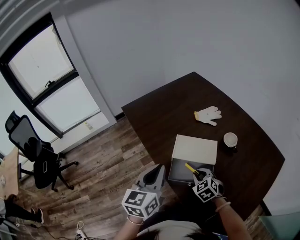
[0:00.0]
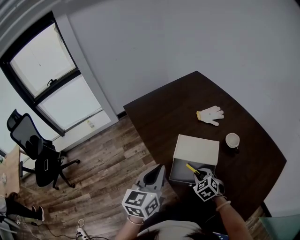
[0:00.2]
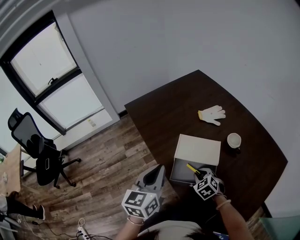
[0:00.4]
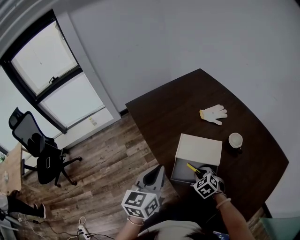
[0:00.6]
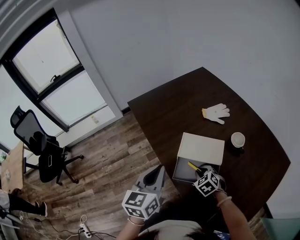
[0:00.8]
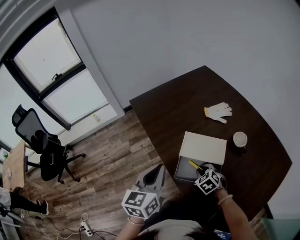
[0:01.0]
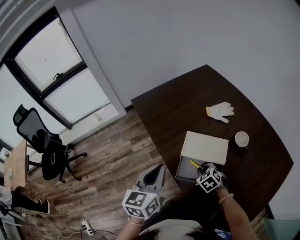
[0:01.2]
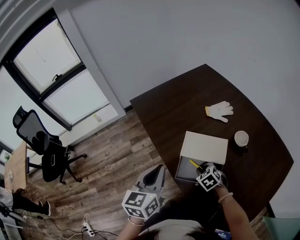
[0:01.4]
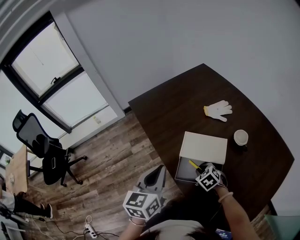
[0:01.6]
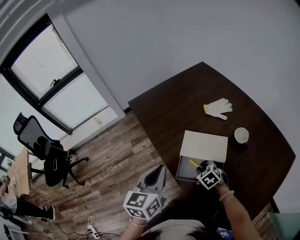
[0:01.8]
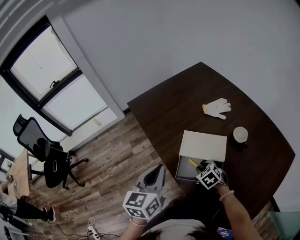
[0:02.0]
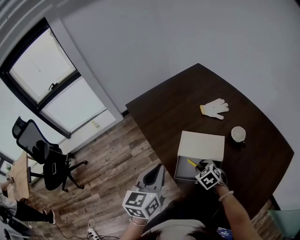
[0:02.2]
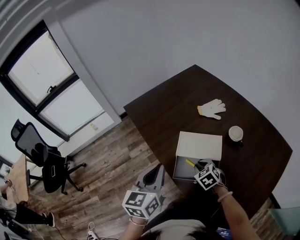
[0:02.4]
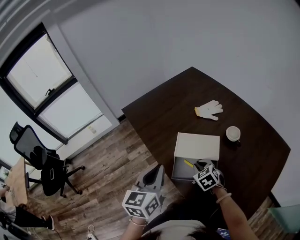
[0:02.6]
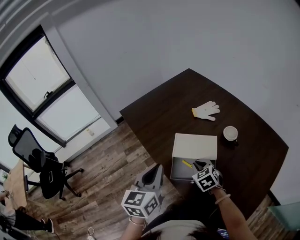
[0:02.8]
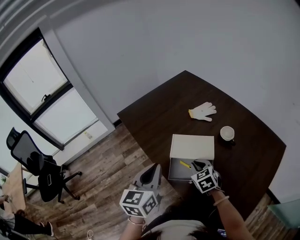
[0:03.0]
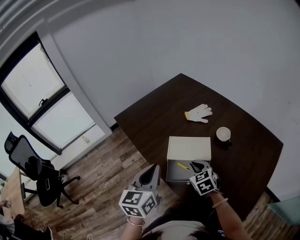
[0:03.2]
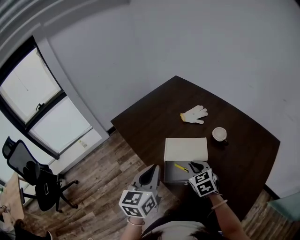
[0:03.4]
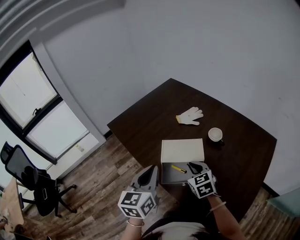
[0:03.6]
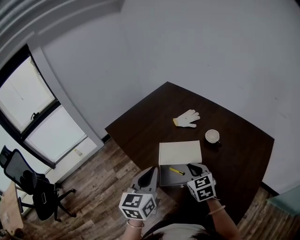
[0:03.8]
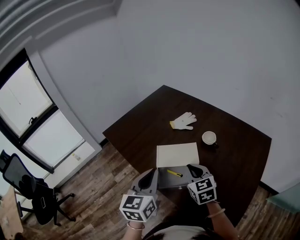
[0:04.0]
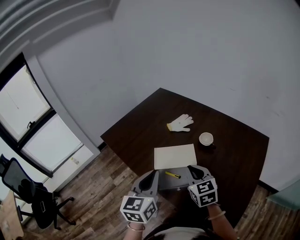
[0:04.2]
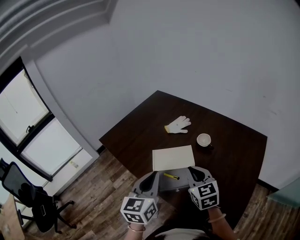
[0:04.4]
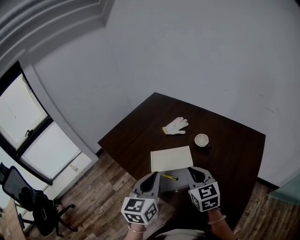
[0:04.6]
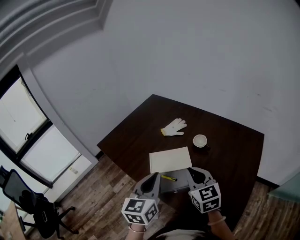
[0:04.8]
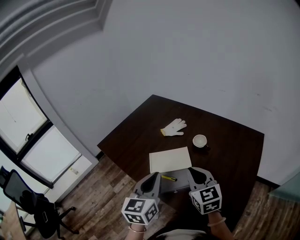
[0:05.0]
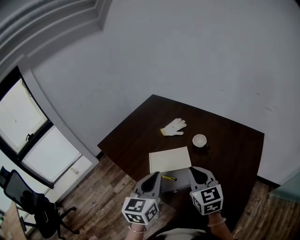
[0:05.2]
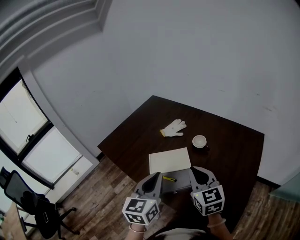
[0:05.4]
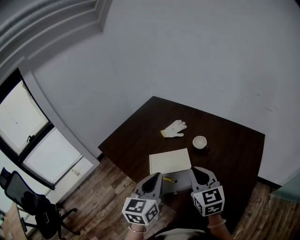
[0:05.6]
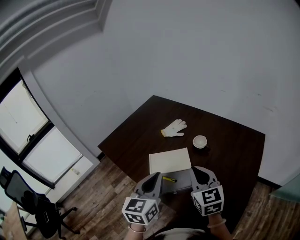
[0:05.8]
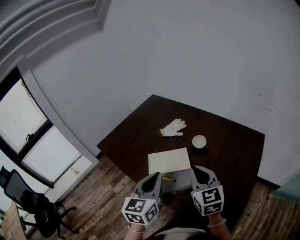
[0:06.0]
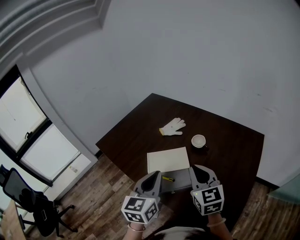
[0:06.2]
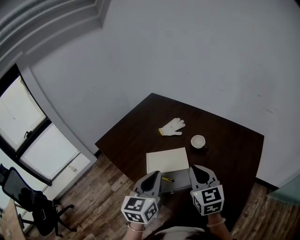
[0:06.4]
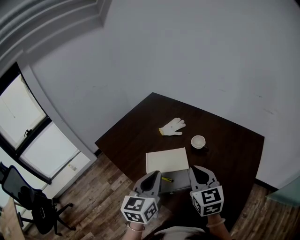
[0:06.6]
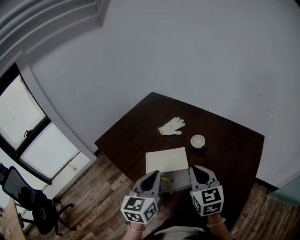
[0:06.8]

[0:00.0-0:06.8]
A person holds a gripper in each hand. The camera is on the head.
0:00.0 to 0:01.4: The right gripper is displaced downward by approximately 5 cm.
0:01.4 to 0:02.8: The right gripper heads upward, covering approximately 10 cm.
0:02.8 to 0:04.0: The left gripper changes place by some 5 cm. The right gripper shifts about 15 cm upward, and turns by about 30 degrees.
0:04.0 to 0:05.4: The left gripper shifts approximately 5 cm to the right. Meanwhile the right gripper is displaced upward and to the right by roughly 10 cm.
0:05.4 to 0:06.8: The grippers make only small movements.

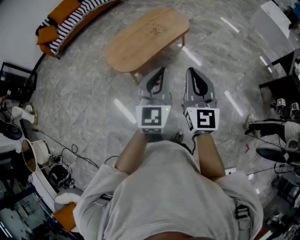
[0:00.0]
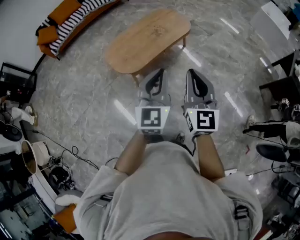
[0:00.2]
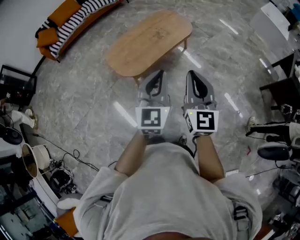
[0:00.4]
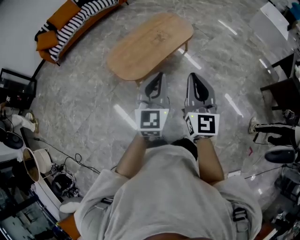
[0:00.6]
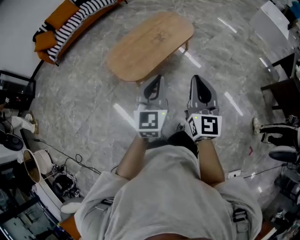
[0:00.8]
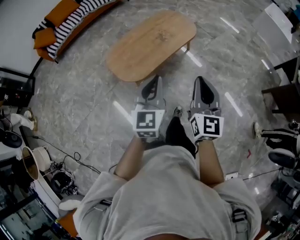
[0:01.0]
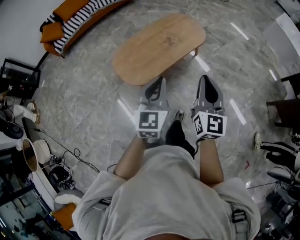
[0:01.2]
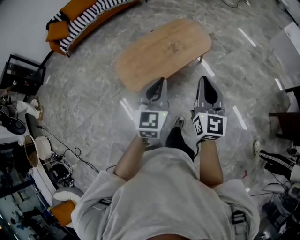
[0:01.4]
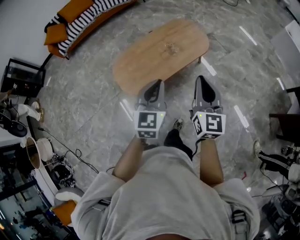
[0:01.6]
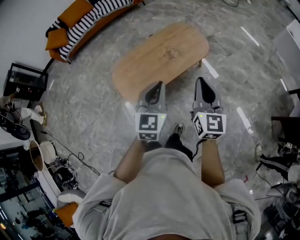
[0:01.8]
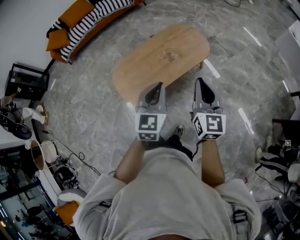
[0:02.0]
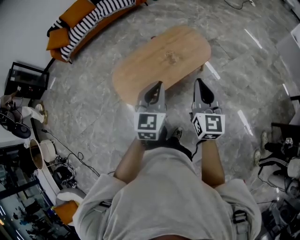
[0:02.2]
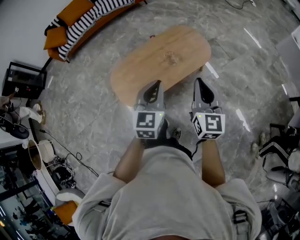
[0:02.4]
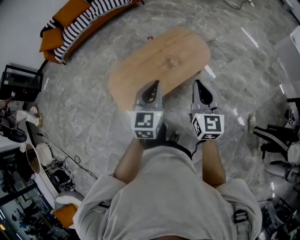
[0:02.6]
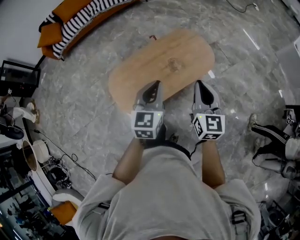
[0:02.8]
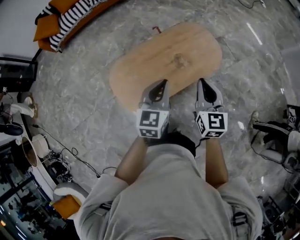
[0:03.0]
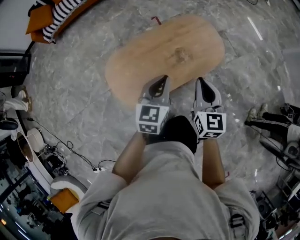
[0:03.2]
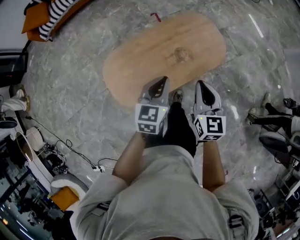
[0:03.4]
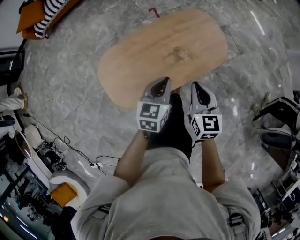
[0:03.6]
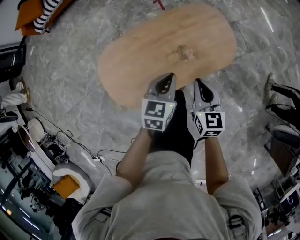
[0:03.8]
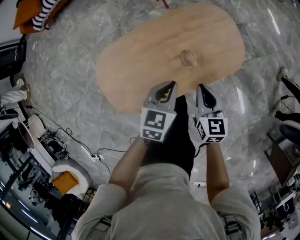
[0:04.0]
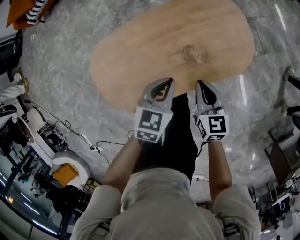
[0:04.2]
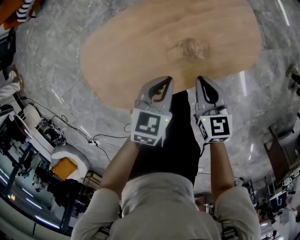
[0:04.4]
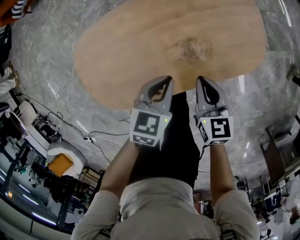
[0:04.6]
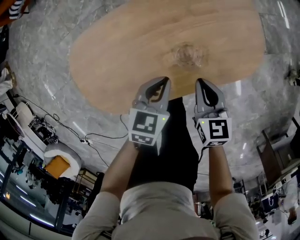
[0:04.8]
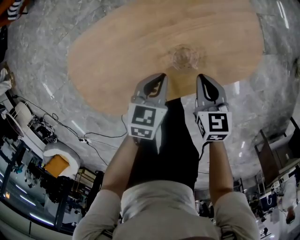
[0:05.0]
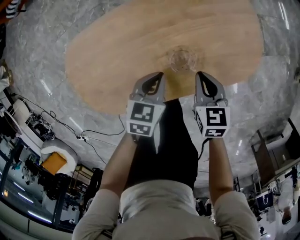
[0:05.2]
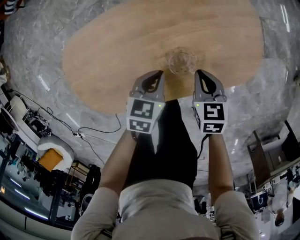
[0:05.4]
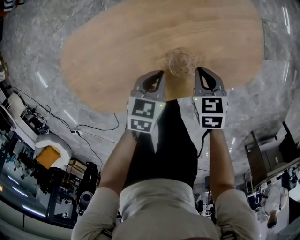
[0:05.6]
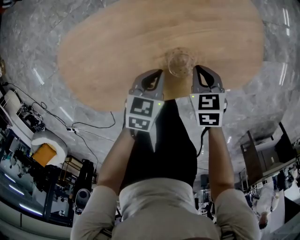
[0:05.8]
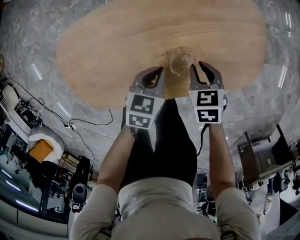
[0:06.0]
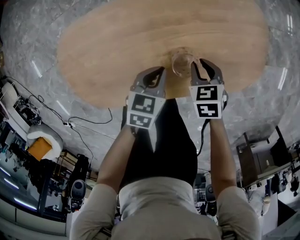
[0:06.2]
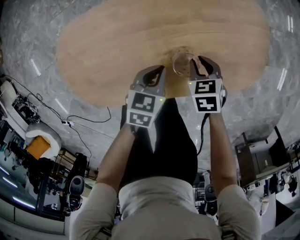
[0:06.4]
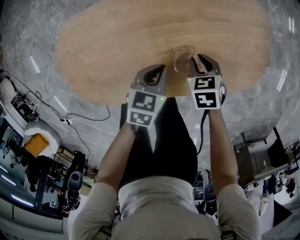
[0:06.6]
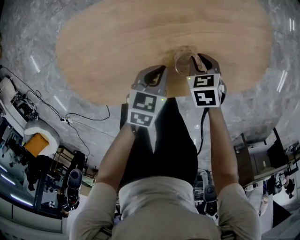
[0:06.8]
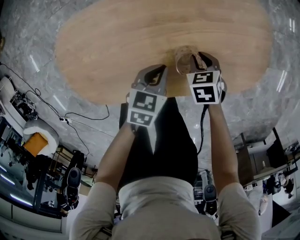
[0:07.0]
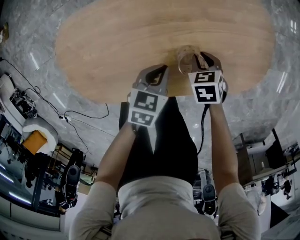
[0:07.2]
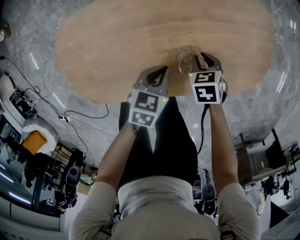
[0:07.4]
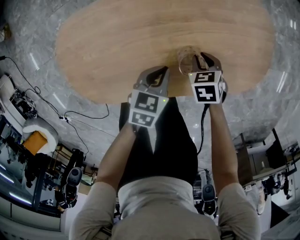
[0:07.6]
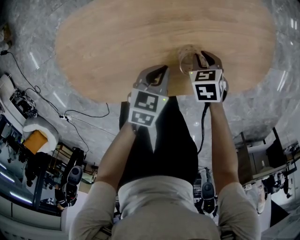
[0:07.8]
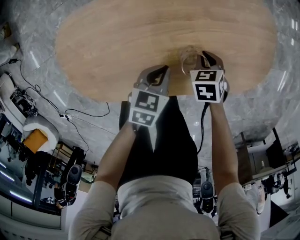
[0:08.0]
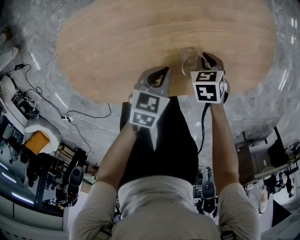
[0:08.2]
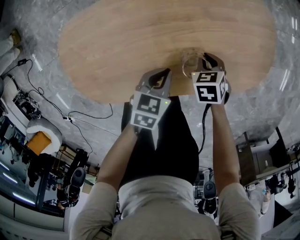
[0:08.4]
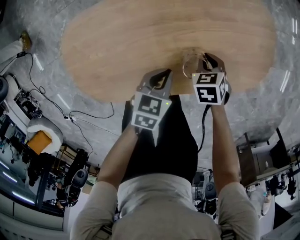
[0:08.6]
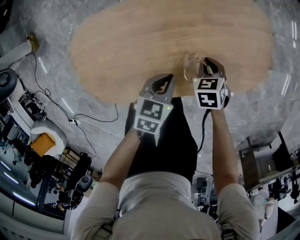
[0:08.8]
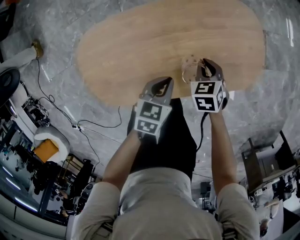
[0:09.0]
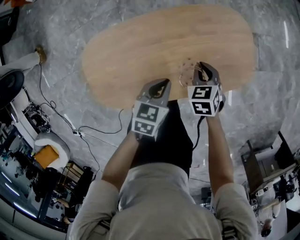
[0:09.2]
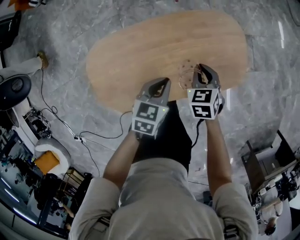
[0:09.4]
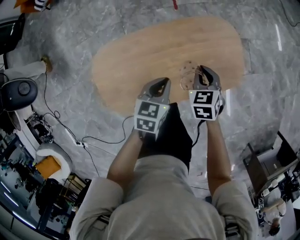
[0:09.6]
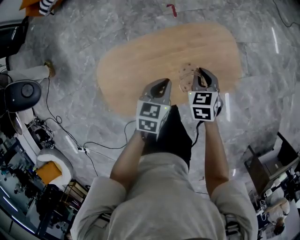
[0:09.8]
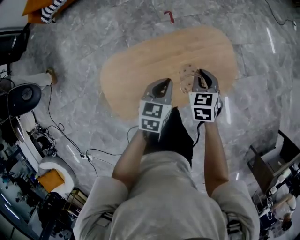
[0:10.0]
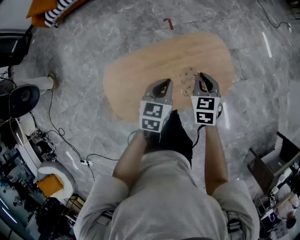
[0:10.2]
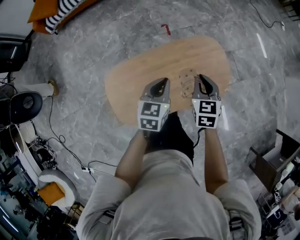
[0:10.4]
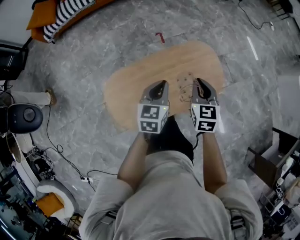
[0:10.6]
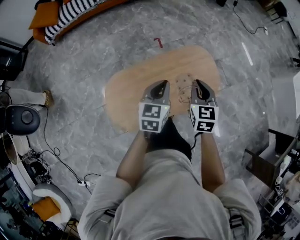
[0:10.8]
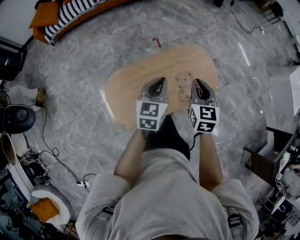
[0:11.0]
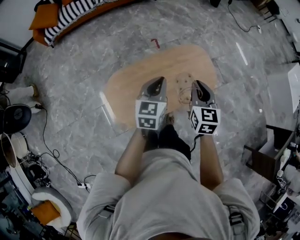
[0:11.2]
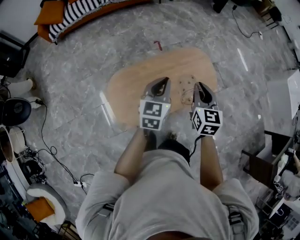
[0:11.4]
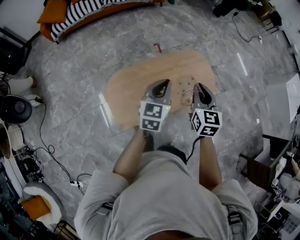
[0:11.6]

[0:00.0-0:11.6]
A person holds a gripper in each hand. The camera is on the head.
0:00.0 to 0:01.4: The right gripper moves forward, roughly 25 cm, while the left gripper moves forward and to the left, about 20 cm.
0:01.4 to 0:02.8: Both grippers move forward, about 25 cm.
0:02.8 to 0:04.4: The two grippers go roughly 40 cm downward and forward. The left gripper rotates about 30 degrees, while the right gripper changes its angle by about 30 degrees.
0:04.4 to 0:05.8: The right gripper moves downward and forward, some 15 cm, and swivels approximately 30 degrees; the left gripper travels downward by approximately 15 cm.
0:05.8 to 0:07.2: The right gripper shifts roughly 5 cm downward.
0:07.2 to 0:08.8: The left gripper shifts roughly 5 cm upward.
0:08.8 to 0:10.2: Both grippers move upward, about 30 cm. The right gripper changes its angle by about 30 degrees. Meanwhile the left gripper changes its angle by approximately 20 degrees.
0:10.2 to 0:11.6: Both grippers move upward and backward, approximately 20 cm. The right gripper rotates some 20 degrees.

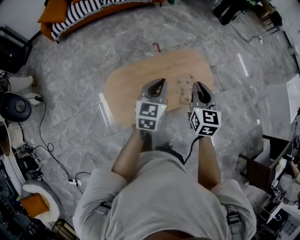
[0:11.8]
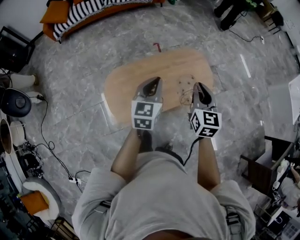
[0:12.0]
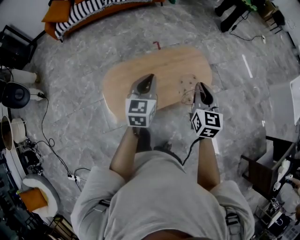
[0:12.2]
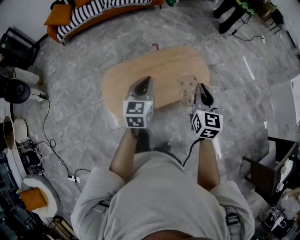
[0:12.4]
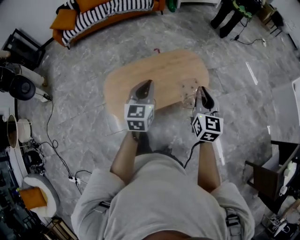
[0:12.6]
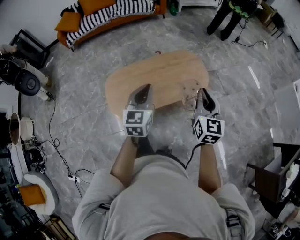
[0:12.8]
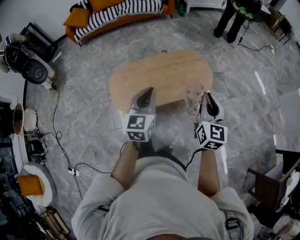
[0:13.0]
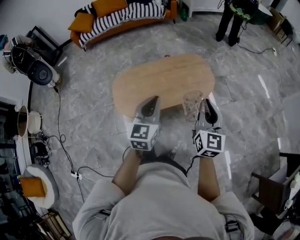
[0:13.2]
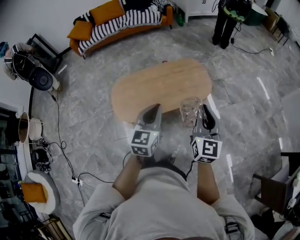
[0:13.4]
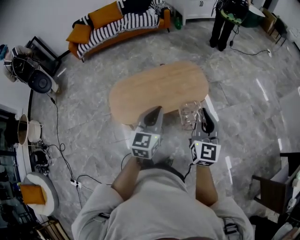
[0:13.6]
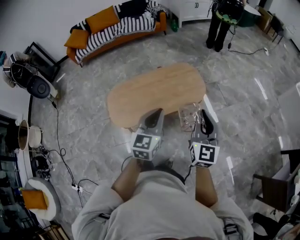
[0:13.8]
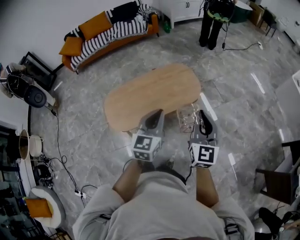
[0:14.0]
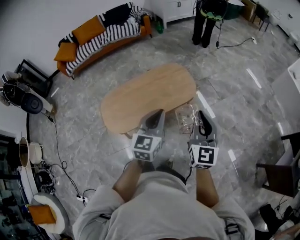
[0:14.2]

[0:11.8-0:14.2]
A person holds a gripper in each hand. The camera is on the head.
0:11.8 to 0:13.0: The left gripper travels backward and to the right by roughly 20 cm, while the right gripper is displaced to the right and backward by some 25 cm.
0:13.0 to 0:14.2: The left gripper travels to the right by some 15 cm, while the right gripper heads to the right and backward, covering some 10 cm.

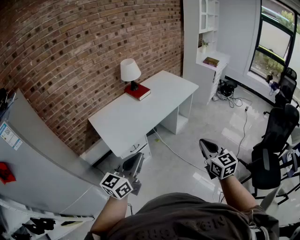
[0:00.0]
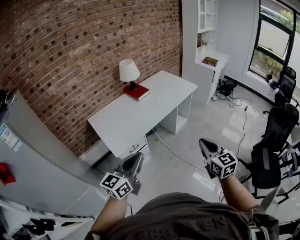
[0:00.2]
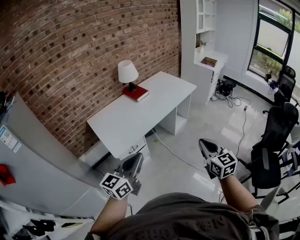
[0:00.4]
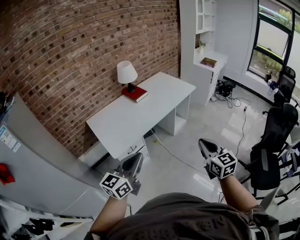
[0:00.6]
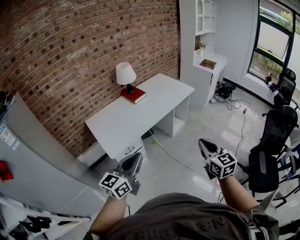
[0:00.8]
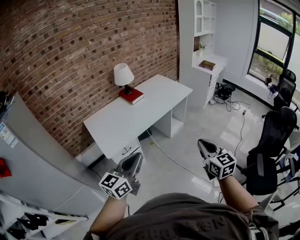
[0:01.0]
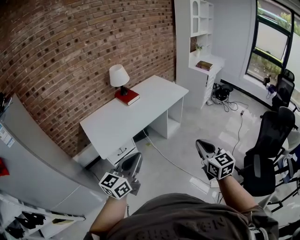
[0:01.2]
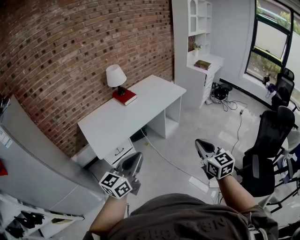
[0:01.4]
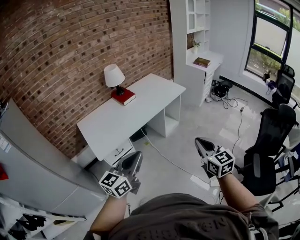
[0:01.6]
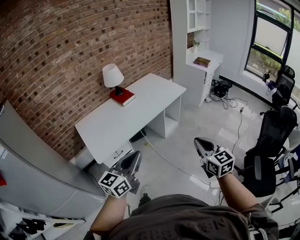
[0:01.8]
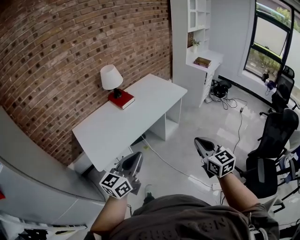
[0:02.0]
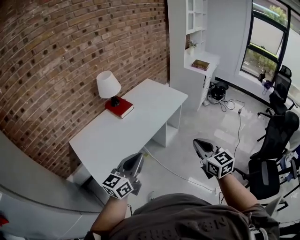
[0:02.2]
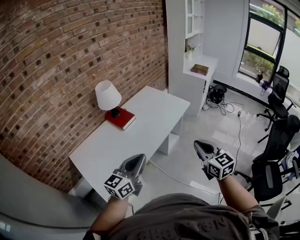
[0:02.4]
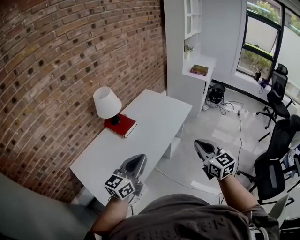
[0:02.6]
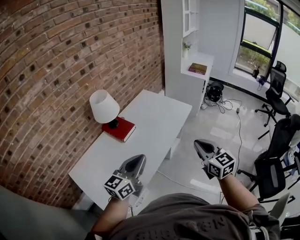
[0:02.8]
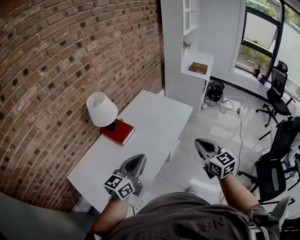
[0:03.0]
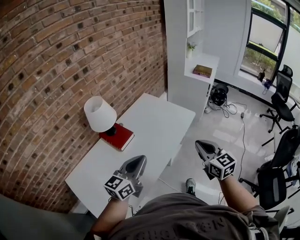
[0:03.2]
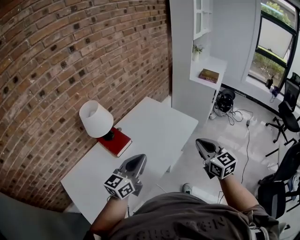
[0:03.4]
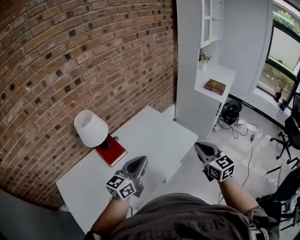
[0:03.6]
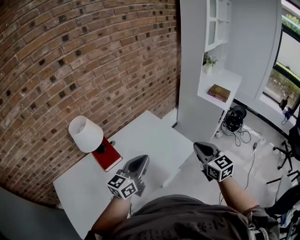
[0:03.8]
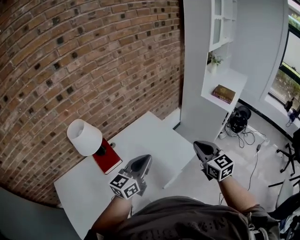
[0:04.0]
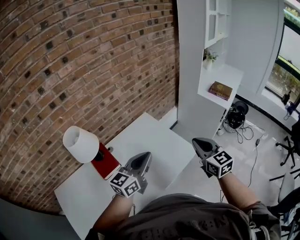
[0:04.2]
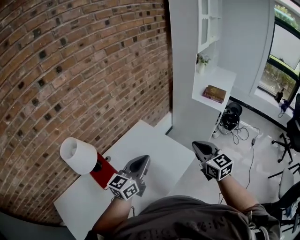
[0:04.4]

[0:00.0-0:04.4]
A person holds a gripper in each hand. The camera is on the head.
0:00.0 to 0:01.4: Both grippers travel together to the right, about 15 cm.
0:01.4 to 0:03.0: The two grippers travel together, forward and to the left, roughly 50 cm.
0:03.0 to 0:04.4: The pair of grippers is taken forward and to the right, roughly 40 cm.
